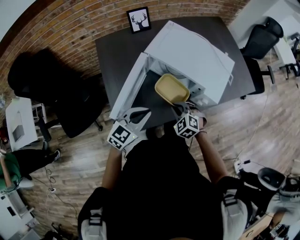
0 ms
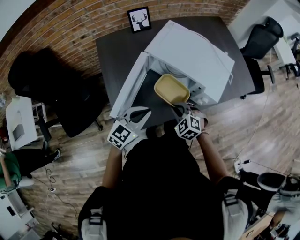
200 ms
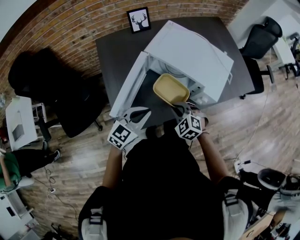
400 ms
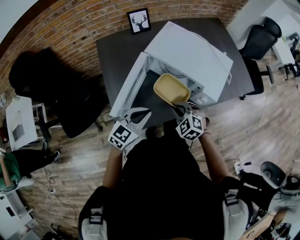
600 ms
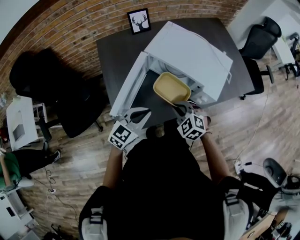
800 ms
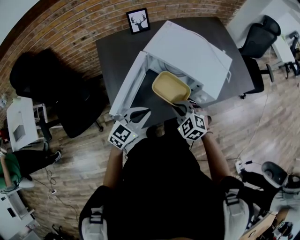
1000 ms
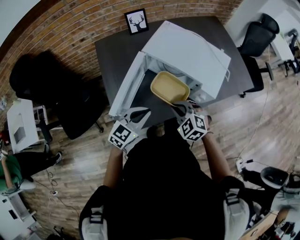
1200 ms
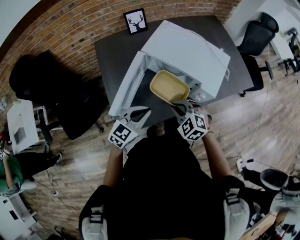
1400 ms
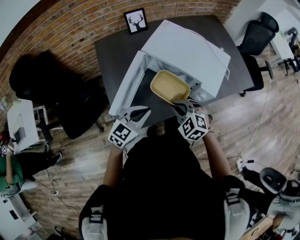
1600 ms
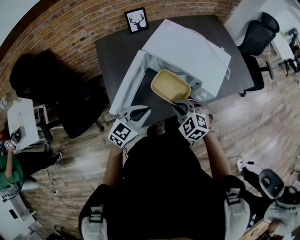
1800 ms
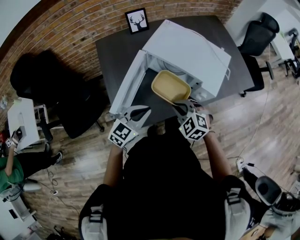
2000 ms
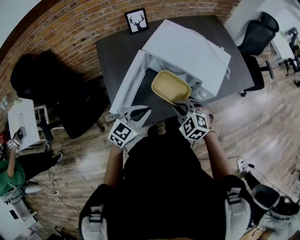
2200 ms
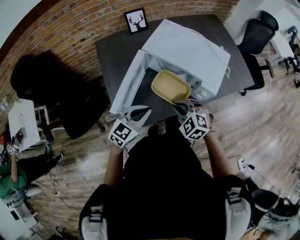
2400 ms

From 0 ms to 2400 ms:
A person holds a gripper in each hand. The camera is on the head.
From 0 ms to 1200 ms: The right gripper shifts about 5 cm upward.
From 1200 ms to 2400 ms: The two grippers keep their place.

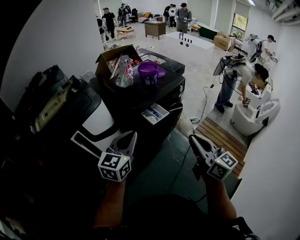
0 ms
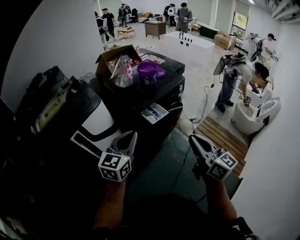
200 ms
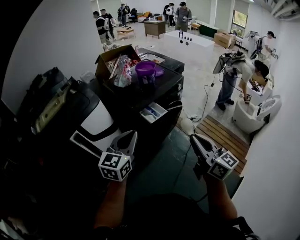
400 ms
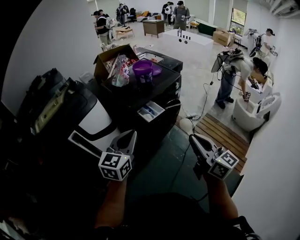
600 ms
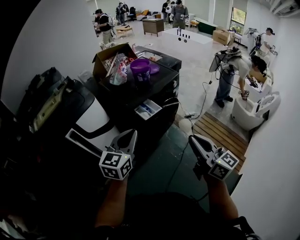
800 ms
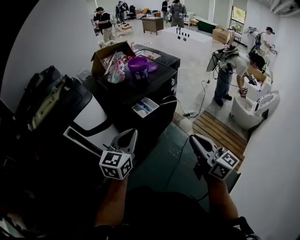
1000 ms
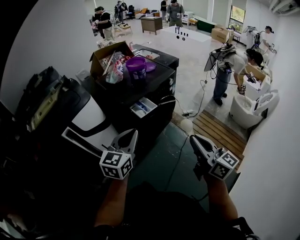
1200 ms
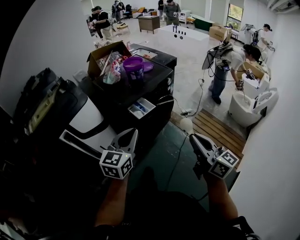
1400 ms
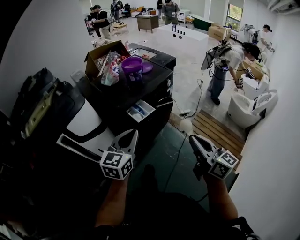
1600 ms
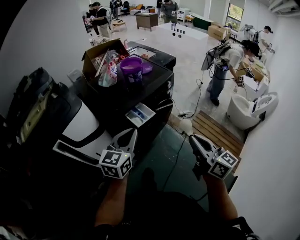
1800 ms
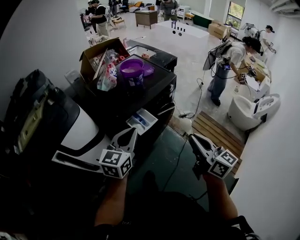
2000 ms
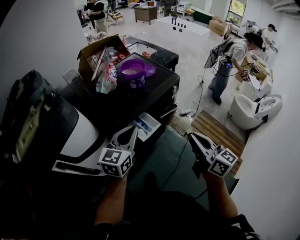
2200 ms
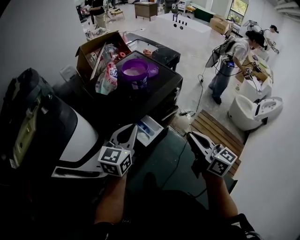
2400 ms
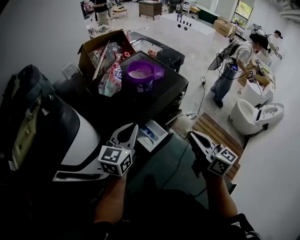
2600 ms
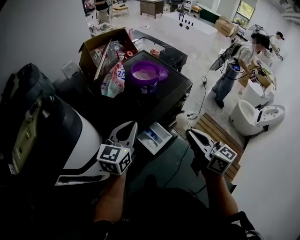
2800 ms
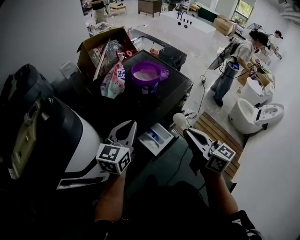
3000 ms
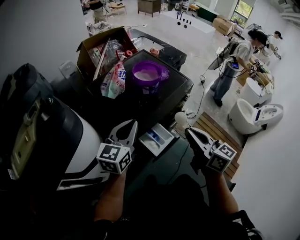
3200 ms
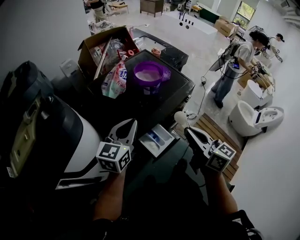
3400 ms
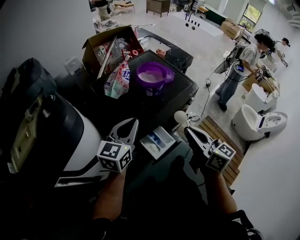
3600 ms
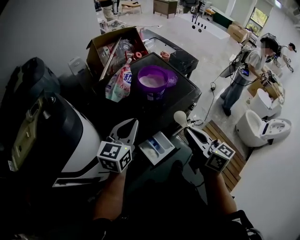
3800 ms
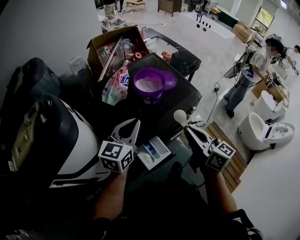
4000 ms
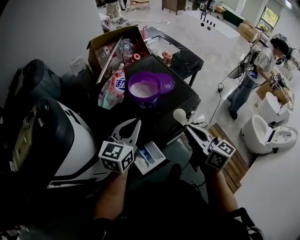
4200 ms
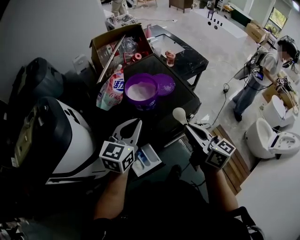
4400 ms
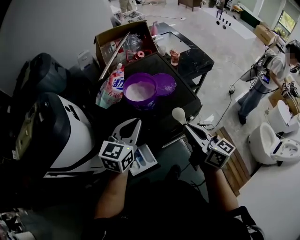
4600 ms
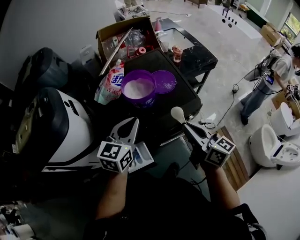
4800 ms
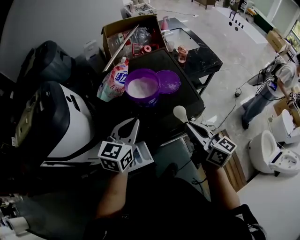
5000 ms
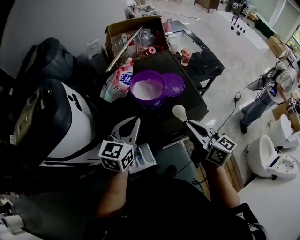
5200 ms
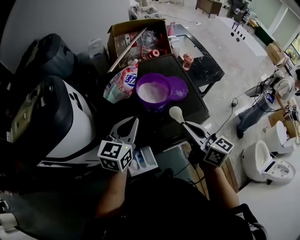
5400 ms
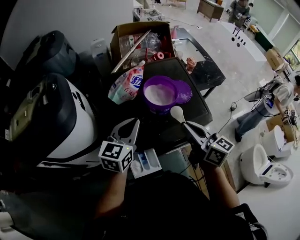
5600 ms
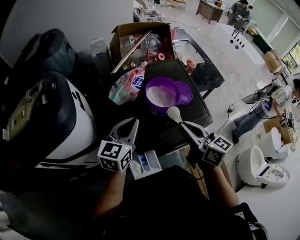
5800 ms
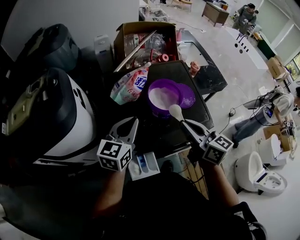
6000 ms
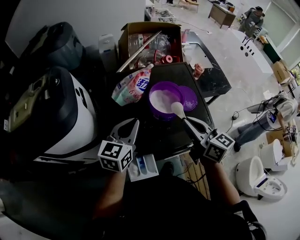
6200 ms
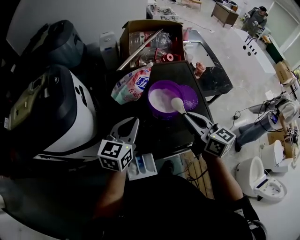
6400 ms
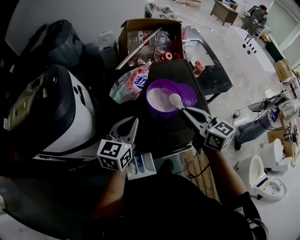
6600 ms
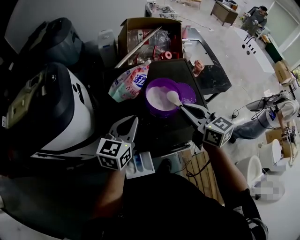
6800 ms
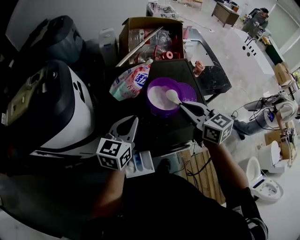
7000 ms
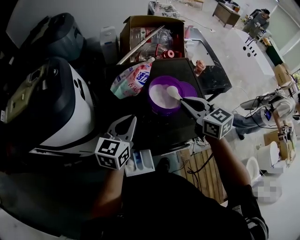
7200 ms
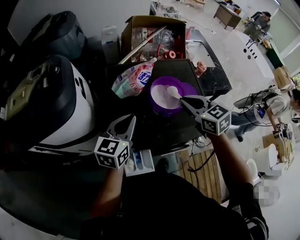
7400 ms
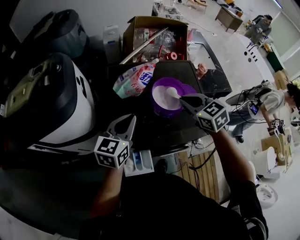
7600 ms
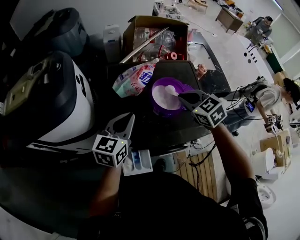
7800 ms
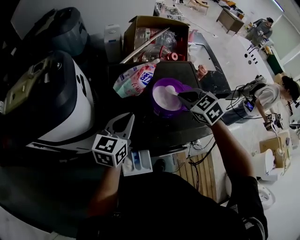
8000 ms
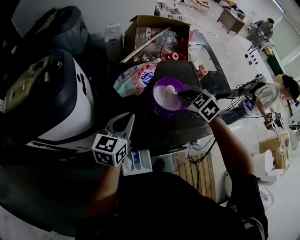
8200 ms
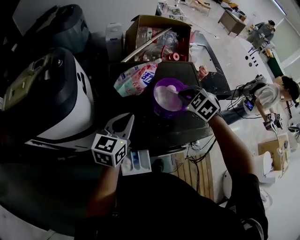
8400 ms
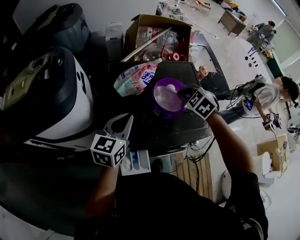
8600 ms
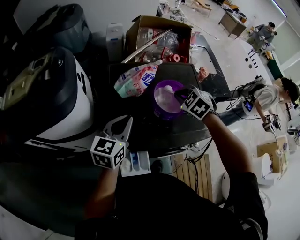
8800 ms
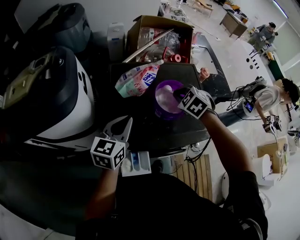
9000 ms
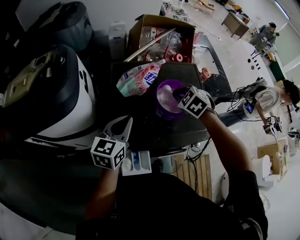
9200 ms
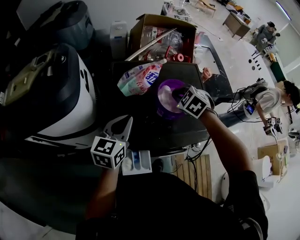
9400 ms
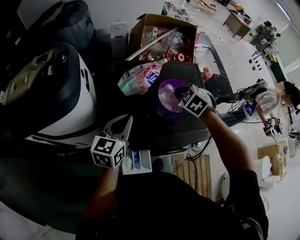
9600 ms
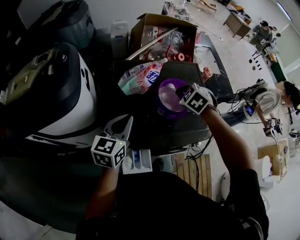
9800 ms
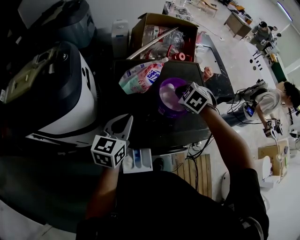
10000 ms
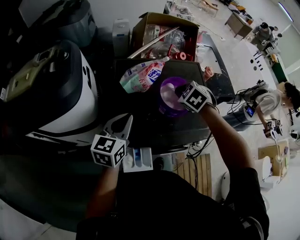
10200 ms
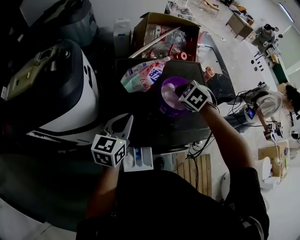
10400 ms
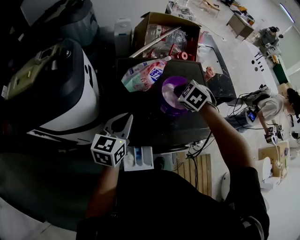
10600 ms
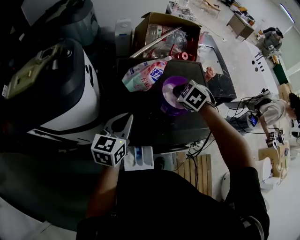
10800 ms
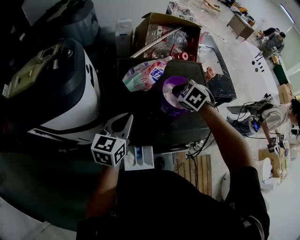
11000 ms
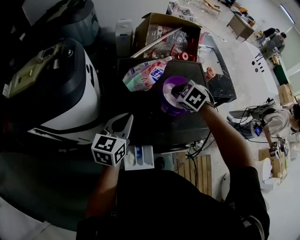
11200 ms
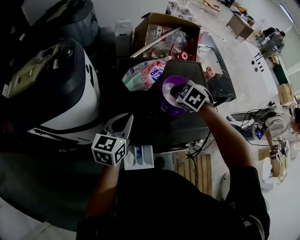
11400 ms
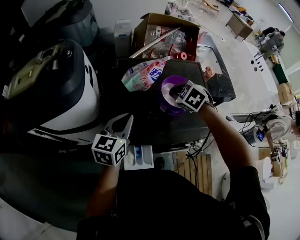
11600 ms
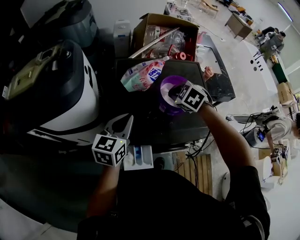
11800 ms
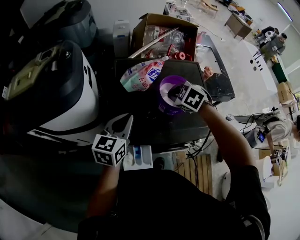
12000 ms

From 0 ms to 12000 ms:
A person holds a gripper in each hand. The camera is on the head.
From 0 ms to 1600 ms: The grippers both shift to the right by roughly 10 cm.
From 1600 ms to 3000 ms: The grippers both shift forward by some 30 cm.
From 3000 ms to 4400 ms: The left gripper is displaced to the right and forward by roughly 20 cm. The right gripper travels forward and to the right by about 20 cm.
From 4400 ms to 6000 ms: The left gripper shifts about 10 cm to the left and forward; the right gripper moves forward and to the left, approximately 15 cm.
From 6000 ms to 7600 ms: The right gripper heads forward, covering roughly 10 cm, and turns by roughly 50 degrees.
From 7600 ms to 9000 ms: The right gripper moves forward and downward, some 10 cm, and turns by about 30 degrees.
From 9000 ms to 12000 ms: The grippers move only a little.

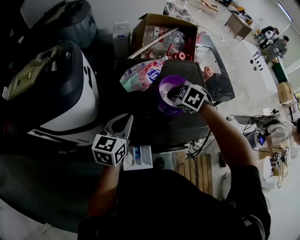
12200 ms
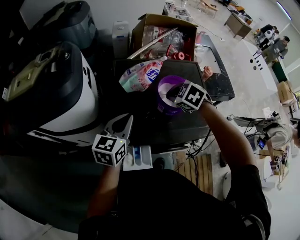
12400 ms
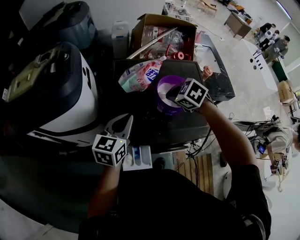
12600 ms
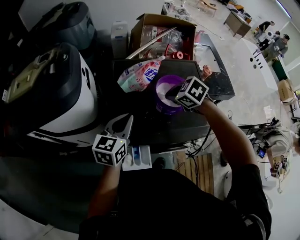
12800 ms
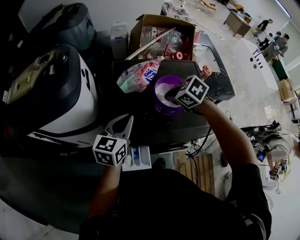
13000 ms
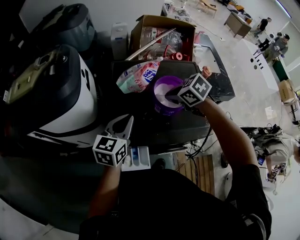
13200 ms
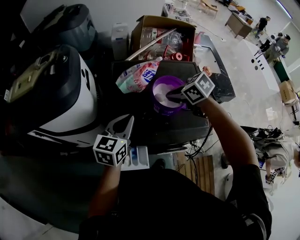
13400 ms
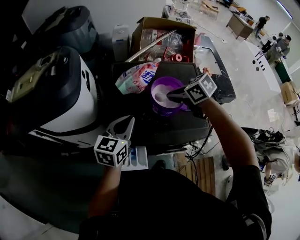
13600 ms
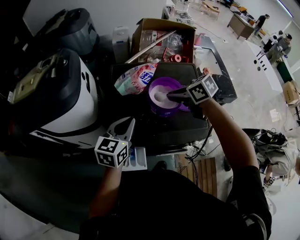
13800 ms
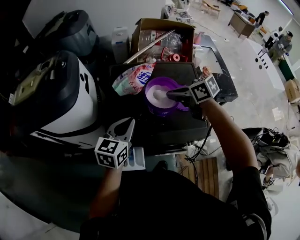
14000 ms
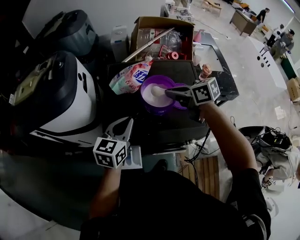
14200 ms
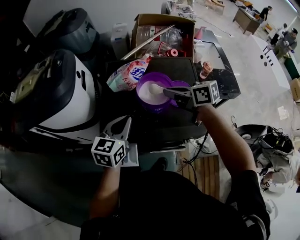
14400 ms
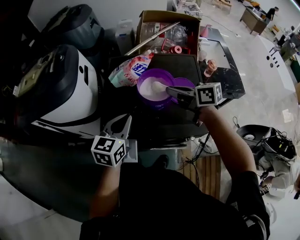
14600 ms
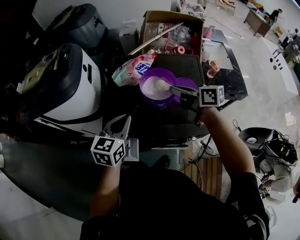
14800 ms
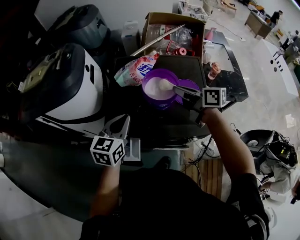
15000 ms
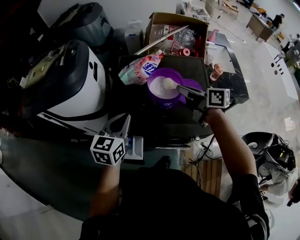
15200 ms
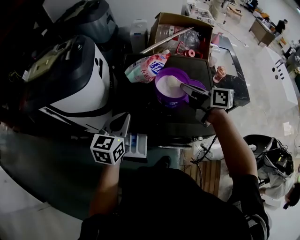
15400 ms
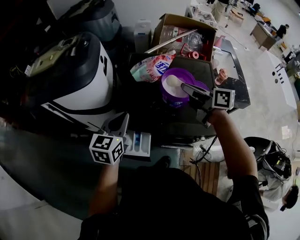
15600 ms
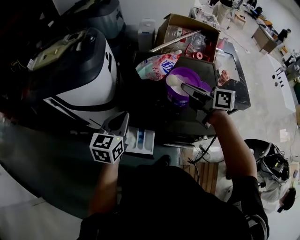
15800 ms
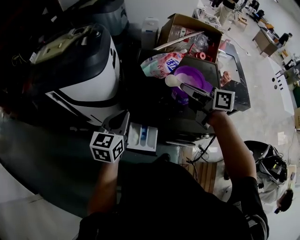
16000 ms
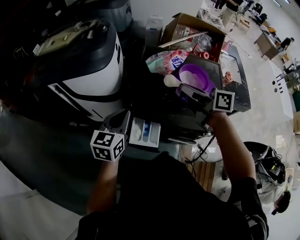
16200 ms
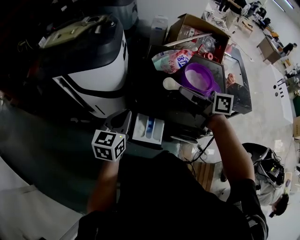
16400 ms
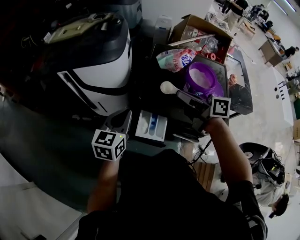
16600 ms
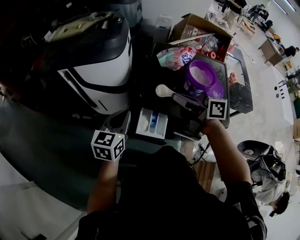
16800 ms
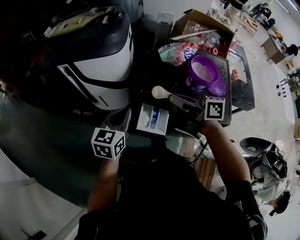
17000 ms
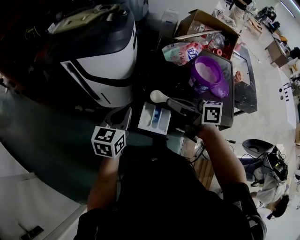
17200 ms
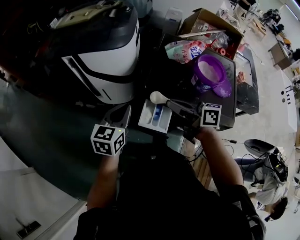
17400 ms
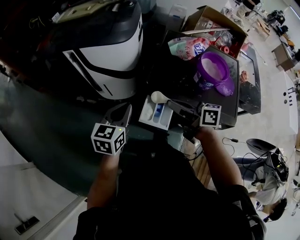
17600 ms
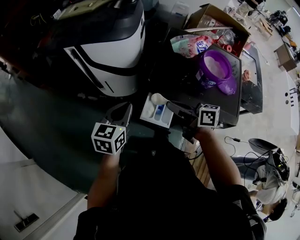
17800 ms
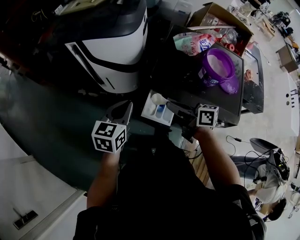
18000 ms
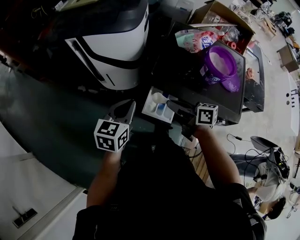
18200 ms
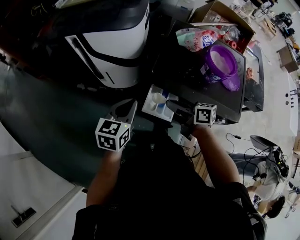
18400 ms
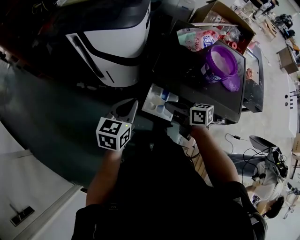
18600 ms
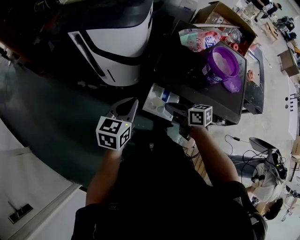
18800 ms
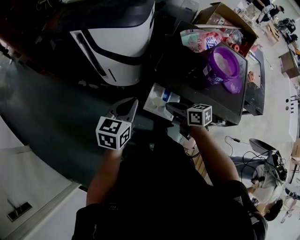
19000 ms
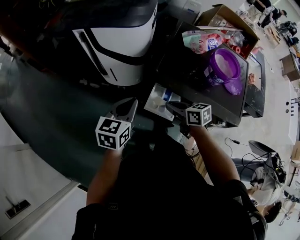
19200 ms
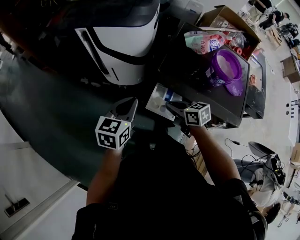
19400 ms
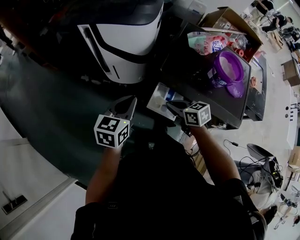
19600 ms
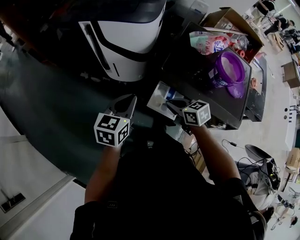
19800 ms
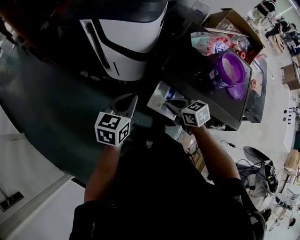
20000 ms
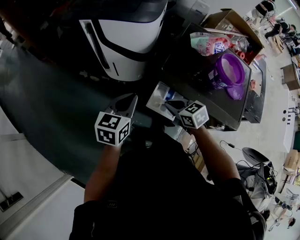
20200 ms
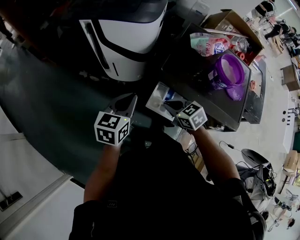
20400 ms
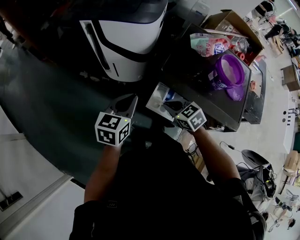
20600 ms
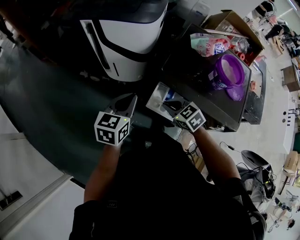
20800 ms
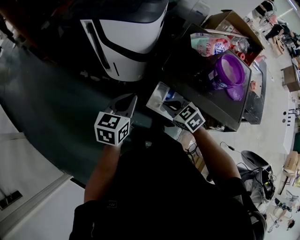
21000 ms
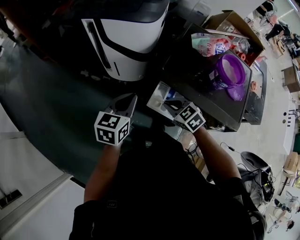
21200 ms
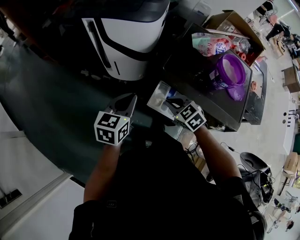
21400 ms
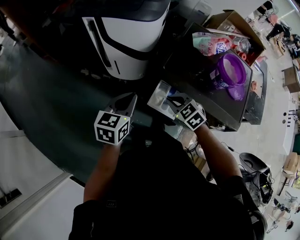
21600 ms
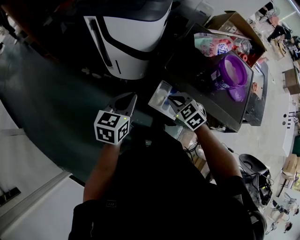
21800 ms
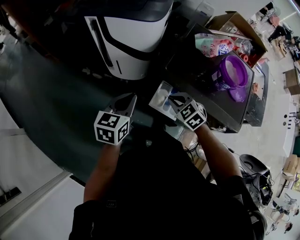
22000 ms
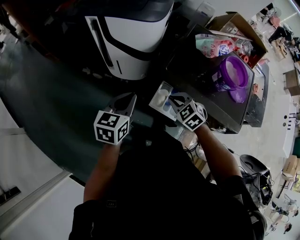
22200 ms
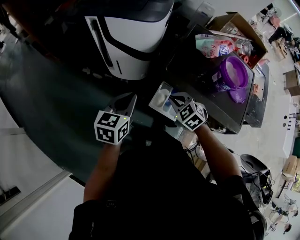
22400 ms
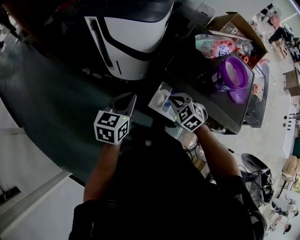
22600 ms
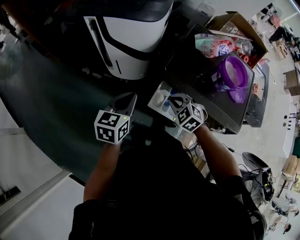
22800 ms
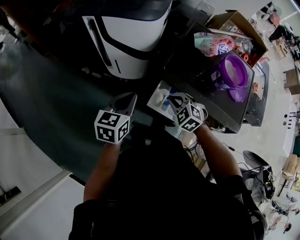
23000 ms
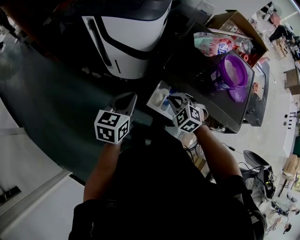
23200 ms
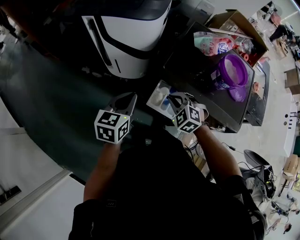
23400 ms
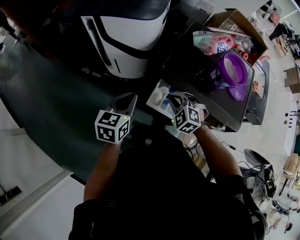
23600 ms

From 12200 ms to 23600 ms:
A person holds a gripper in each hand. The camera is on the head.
From 12200 ms to 13600 ms: The right gripper turns by approximately 40 degrees.
From 13600 ms to 15000 ms: The left gripper moves some 5 cm. Meanwhile the right gripper goes approximately 5 cm to the right, and angles its fingers upward, by roughly 30 degrees.
From 15000 ms to 16400 ms: Both grippers move to the left, approximately 20 cm.
From 16400 ms to 17800 ms: The right gripper travels downward, to the left and backward by about 15 cm. Meanwhile the left gripper travels to the left by some 5 cm.
From 17800 ms to 19400 ms: The right gripper goes roughly 10 cm downward, and rotates approximately 30 degrees.
From 19400 ms to 20800 ms: The right gripper turns by about 30 degrees.
From 20800 ms to 22200 ms: The grippers move only a little.
From 22200 ms to 23600 ms: The grippers stay close to where they were, moving slightly.
